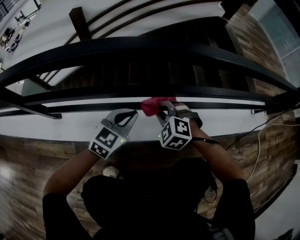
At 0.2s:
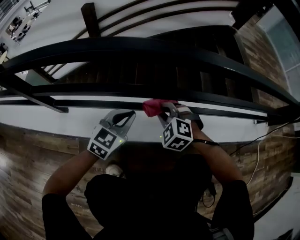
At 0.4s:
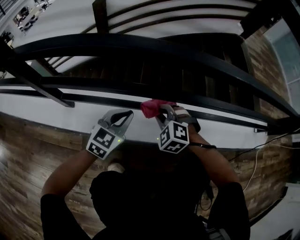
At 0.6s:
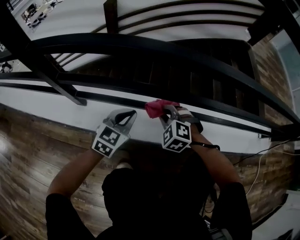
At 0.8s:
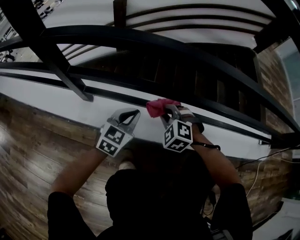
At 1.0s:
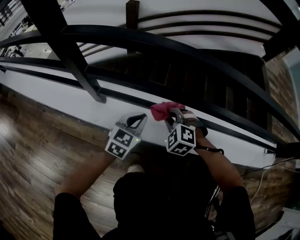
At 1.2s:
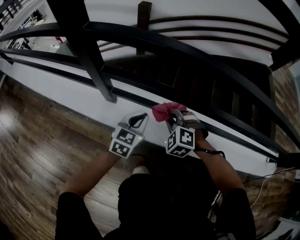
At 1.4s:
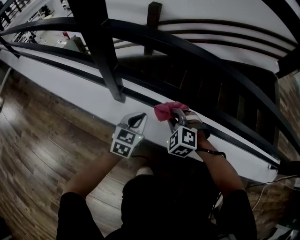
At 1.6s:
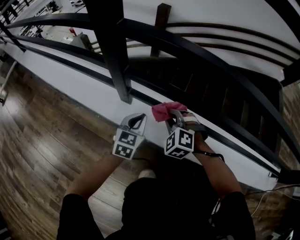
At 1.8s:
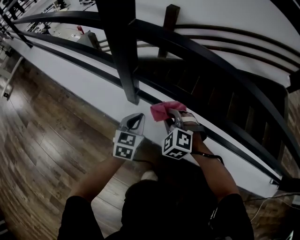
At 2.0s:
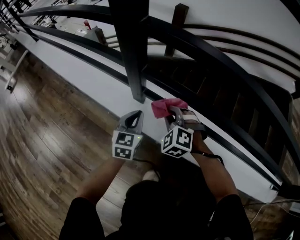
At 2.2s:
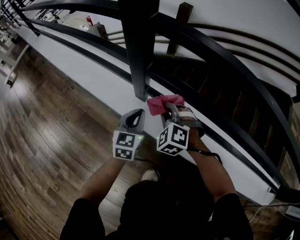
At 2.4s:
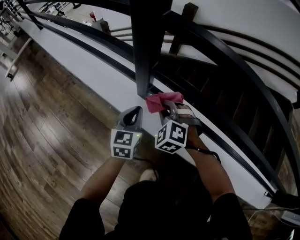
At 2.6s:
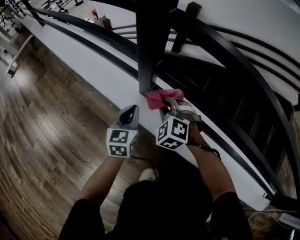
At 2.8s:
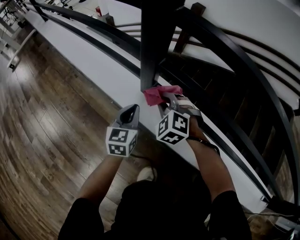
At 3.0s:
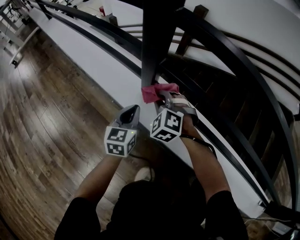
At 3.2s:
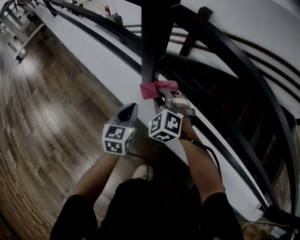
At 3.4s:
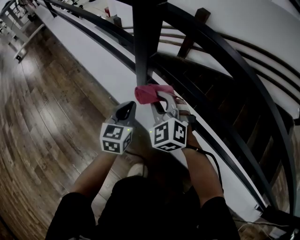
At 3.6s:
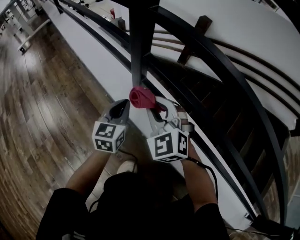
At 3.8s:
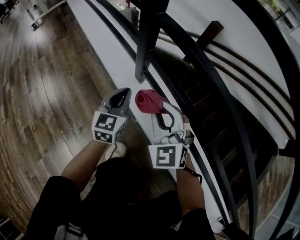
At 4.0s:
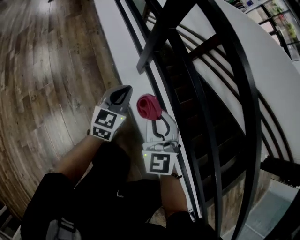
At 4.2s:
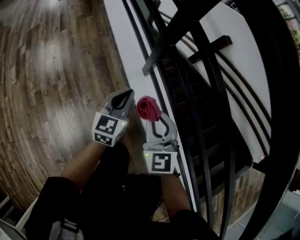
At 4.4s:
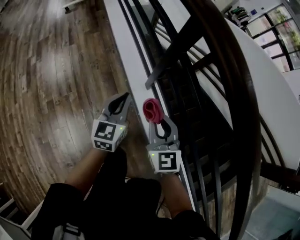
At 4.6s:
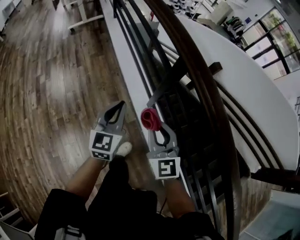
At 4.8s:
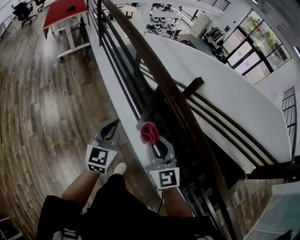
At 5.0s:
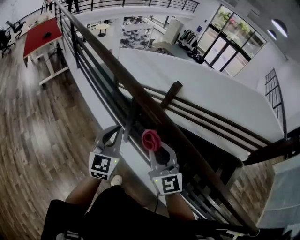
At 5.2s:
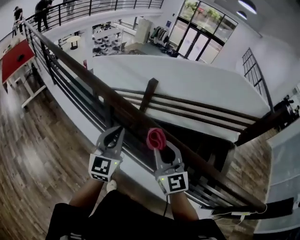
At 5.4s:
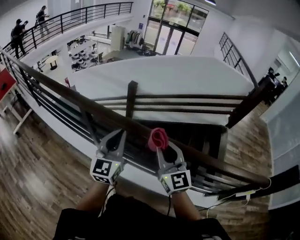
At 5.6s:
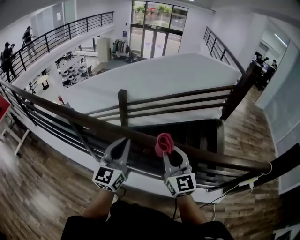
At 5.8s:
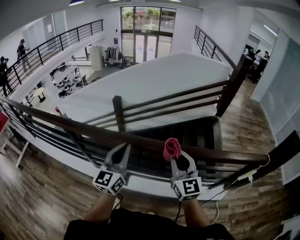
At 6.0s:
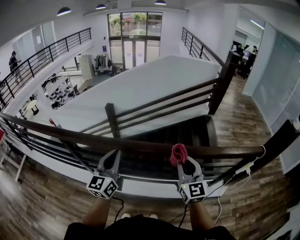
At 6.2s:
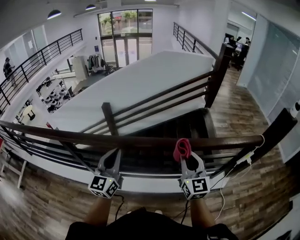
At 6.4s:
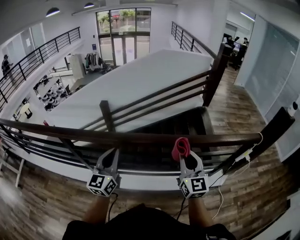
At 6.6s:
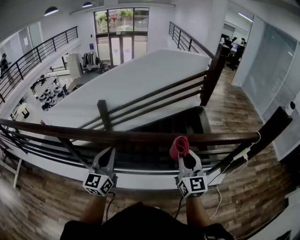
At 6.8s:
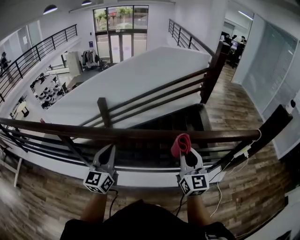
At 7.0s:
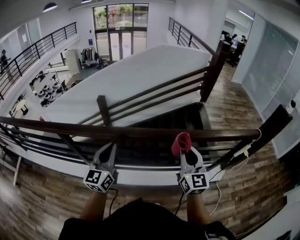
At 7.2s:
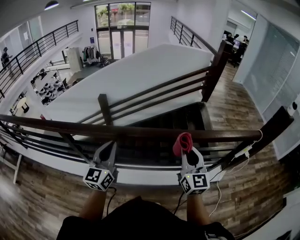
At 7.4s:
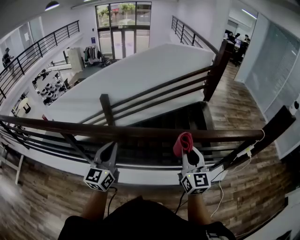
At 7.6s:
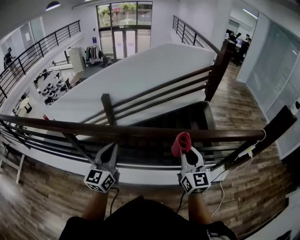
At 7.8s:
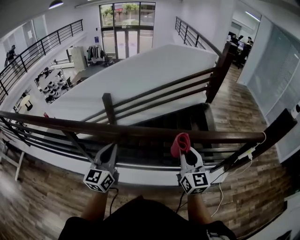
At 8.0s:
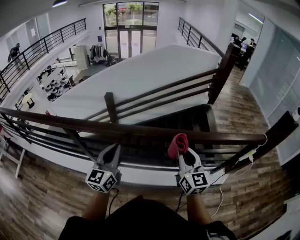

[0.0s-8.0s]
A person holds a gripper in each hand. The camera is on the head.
0.0s to 1.6s: The left gripper moves roughly 30 cm, and swivels some 40 degrees. The right gripper ends up about 30 cm from where it was, and changes its angle by roughly 20 degrees.
1.6s to 3.2s: The right gripper heads to the left and forward, covering about 15 cm. Meanwhile the left gripper is displaced to the left by approximately 10 cm, and turns by roughly 30 degrees.
3.2s to 4.8s: Both grippers move upward, about 60 cm. The right gripper tilts its fingers about 30 degrees upward; the left gripper turns by about 20 degrees.
4.8s to 6.4s: The right gripper moves about 40 cm, and rotates roughly 70 degrees. The left gripper ends up approximately 30 cm from where it was, and turns by about 60 degrees.
6.4s to 8.0s: There are only small adjustments of the grippers.

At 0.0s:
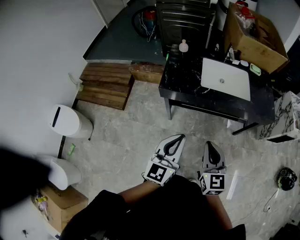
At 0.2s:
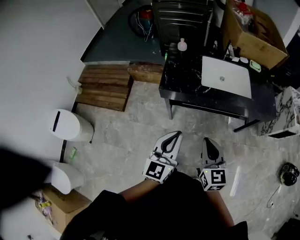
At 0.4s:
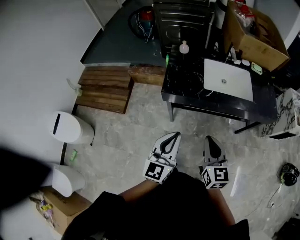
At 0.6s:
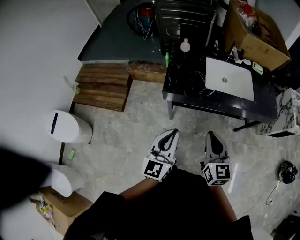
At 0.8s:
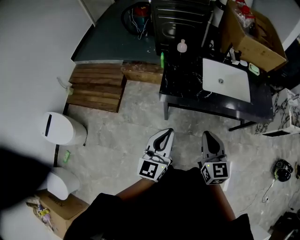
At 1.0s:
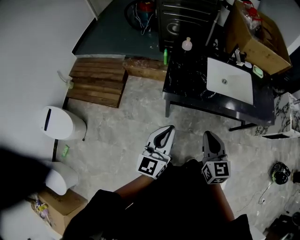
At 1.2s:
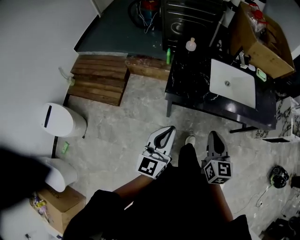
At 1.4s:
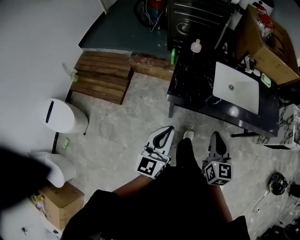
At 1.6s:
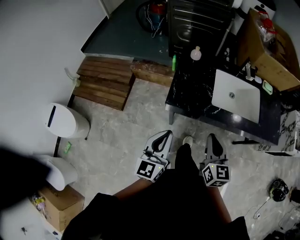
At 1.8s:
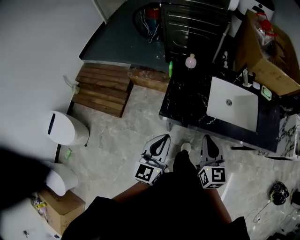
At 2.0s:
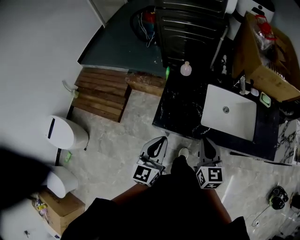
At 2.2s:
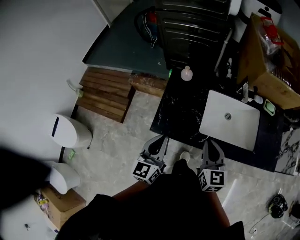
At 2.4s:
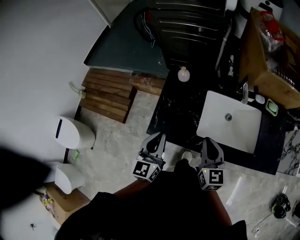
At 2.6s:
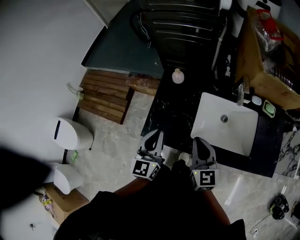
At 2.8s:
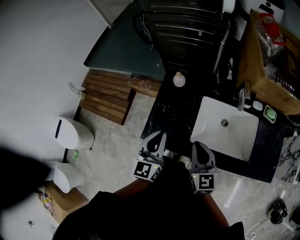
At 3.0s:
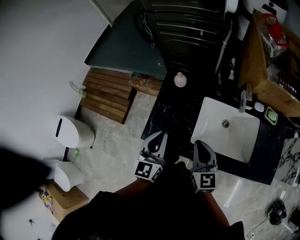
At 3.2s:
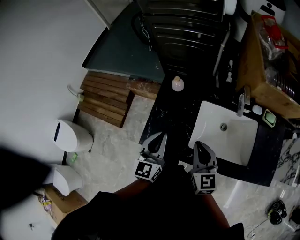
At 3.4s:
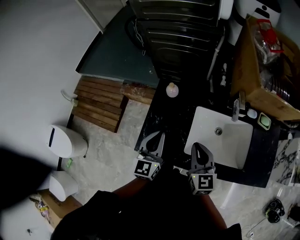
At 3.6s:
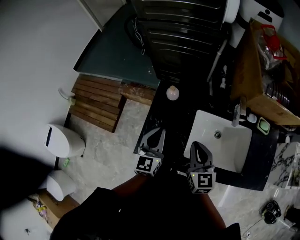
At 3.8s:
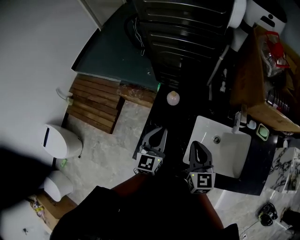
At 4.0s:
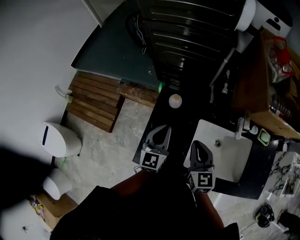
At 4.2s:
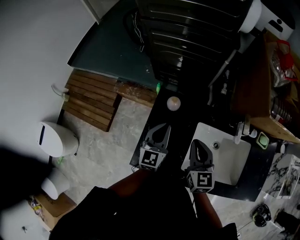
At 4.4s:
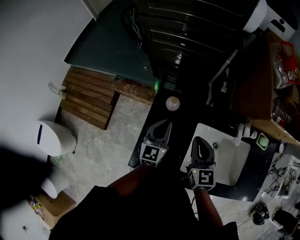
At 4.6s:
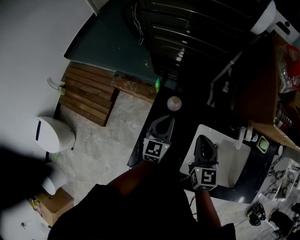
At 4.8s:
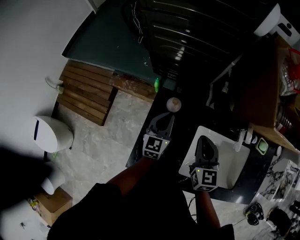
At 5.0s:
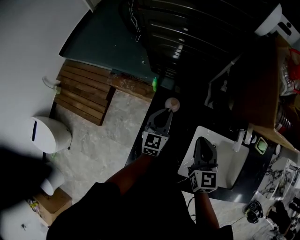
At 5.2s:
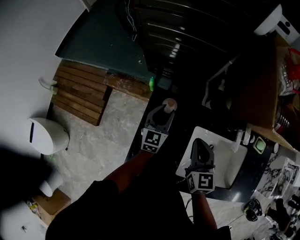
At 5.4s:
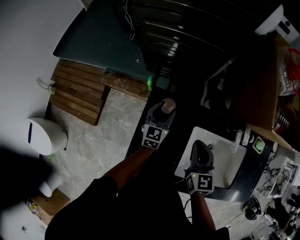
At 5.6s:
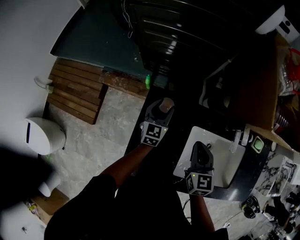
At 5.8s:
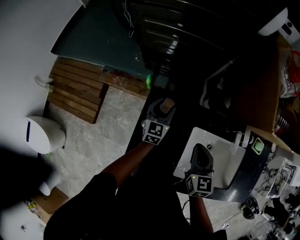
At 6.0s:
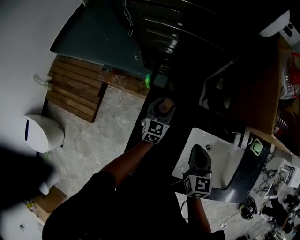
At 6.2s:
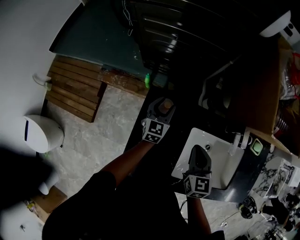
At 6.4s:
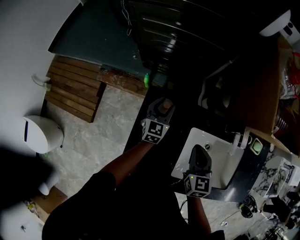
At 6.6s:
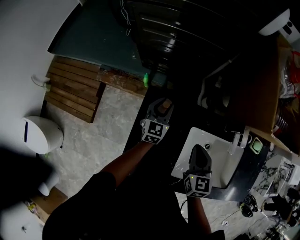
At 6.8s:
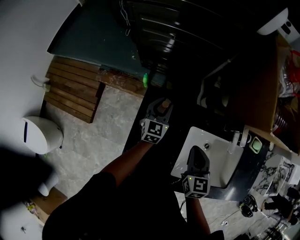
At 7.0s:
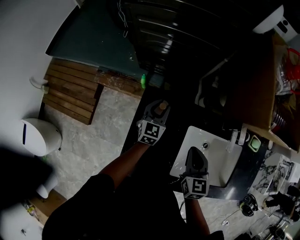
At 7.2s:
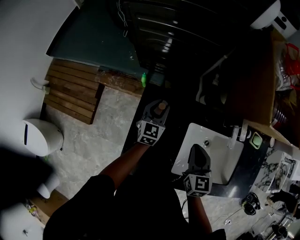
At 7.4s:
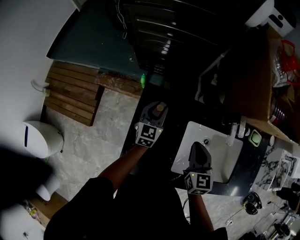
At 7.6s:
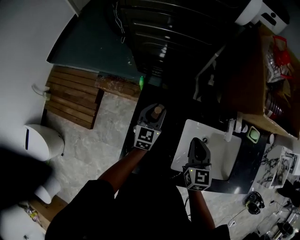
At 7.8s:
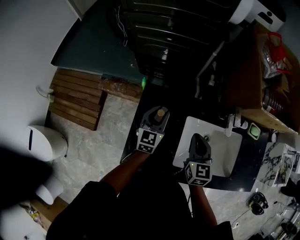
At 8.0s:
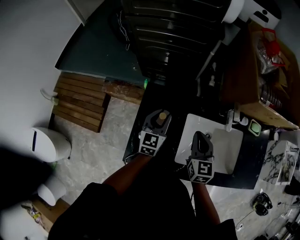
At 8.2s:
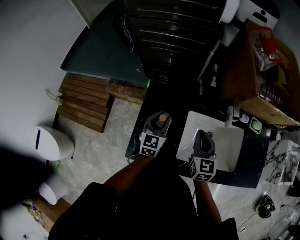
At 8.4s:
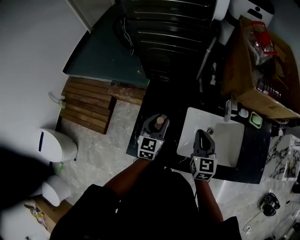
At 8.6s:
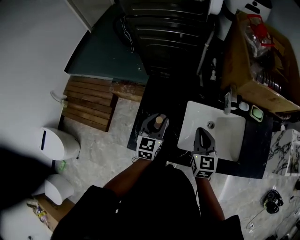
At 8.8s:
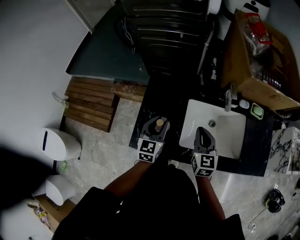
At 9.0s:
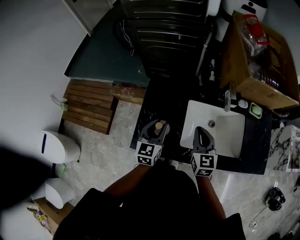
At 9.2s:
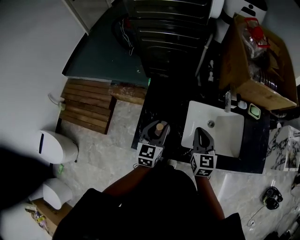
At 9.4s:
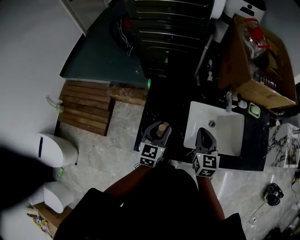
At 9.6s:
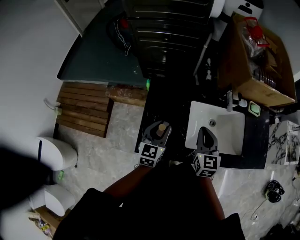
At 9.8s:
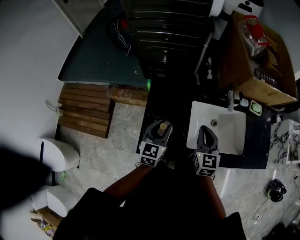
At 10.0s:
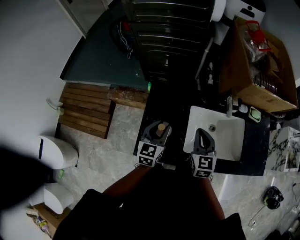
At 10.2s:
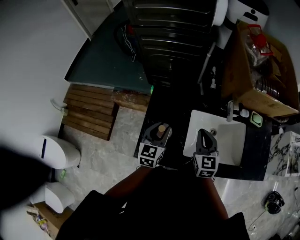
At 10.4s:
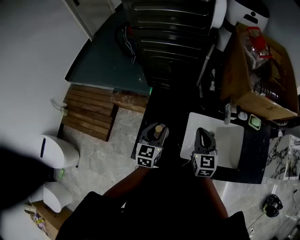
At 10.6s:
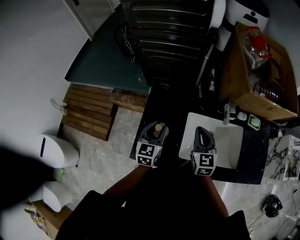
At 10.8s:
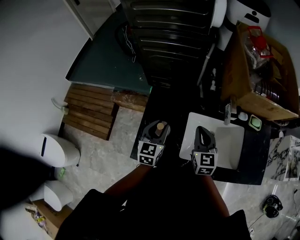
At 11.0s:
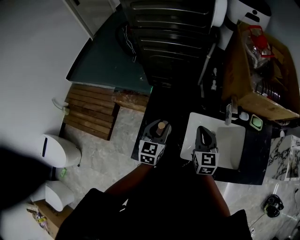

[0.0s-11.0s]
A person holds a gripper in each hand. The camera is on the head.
0.0s to 1.6s: The left gripper goes roughly 20 cm forward and to the left. Meanwhile the right gripper is displaced forward by about 20 cm.
1.6s to 3.2s: The grippers both shift forward and to the right by roughly 30 cm.
3.2s to 4.8s: The left gripper goes some 25 cm forward and downward. The right gripper heads forward, covering roughly 20 cm.
4.8s to 6.2s: The left gripper travels forward and downward by some 10 cm, and opens its fingers.
6.2s to 7.8s: The left gripper is displaced backward and upward by roughly 15 cm.
7.8s to 9.4s: The left gripper heads backward, covering some 20 cm; the right gripper moves backward, roughly 10 cm.
9.4s to 11.0s: The two grippers go approximately 5 cm forward.

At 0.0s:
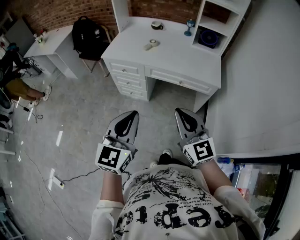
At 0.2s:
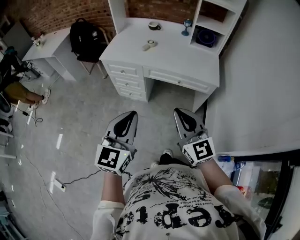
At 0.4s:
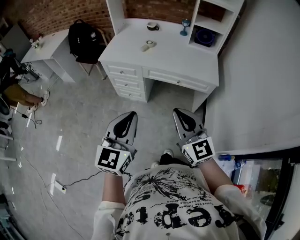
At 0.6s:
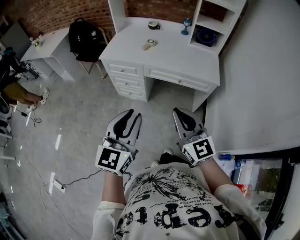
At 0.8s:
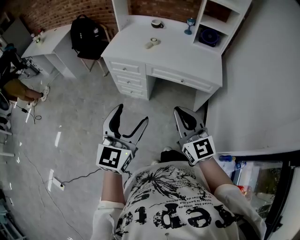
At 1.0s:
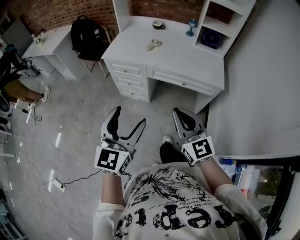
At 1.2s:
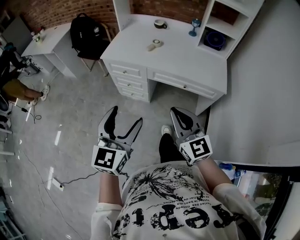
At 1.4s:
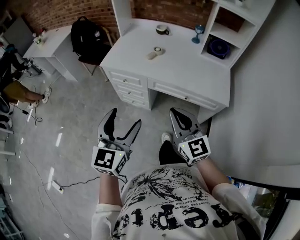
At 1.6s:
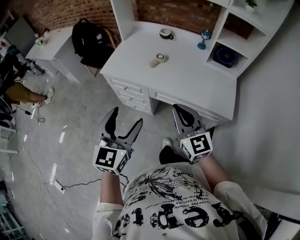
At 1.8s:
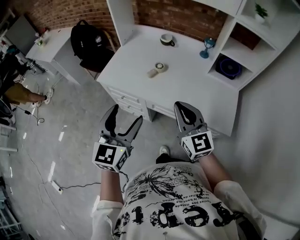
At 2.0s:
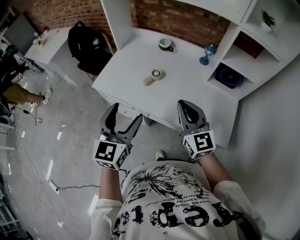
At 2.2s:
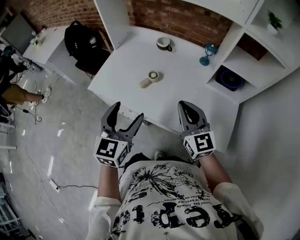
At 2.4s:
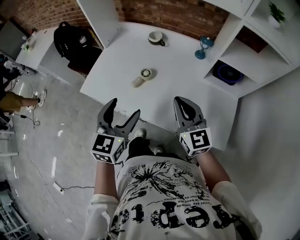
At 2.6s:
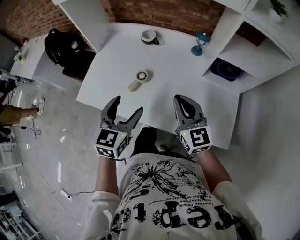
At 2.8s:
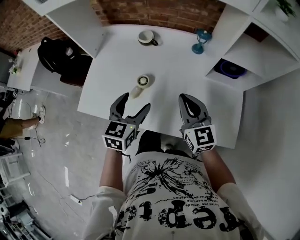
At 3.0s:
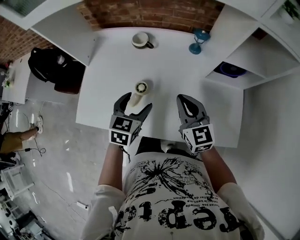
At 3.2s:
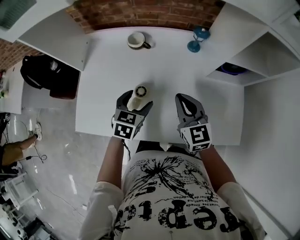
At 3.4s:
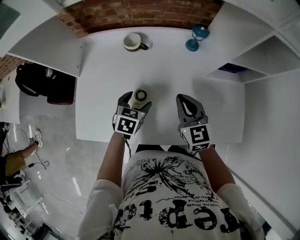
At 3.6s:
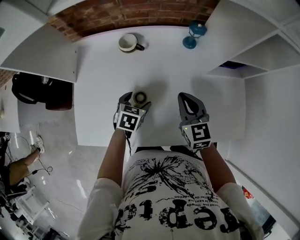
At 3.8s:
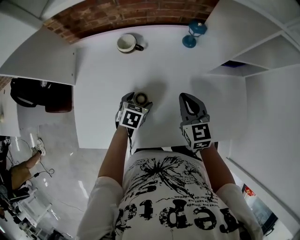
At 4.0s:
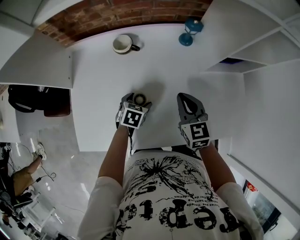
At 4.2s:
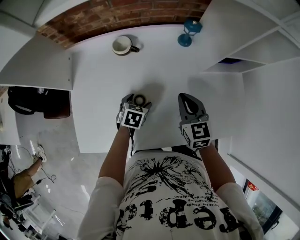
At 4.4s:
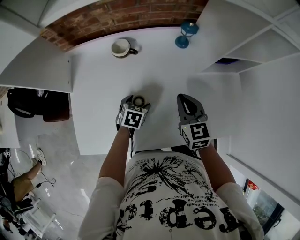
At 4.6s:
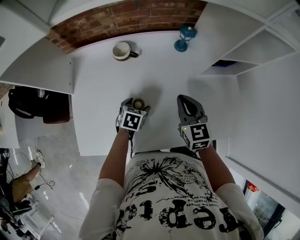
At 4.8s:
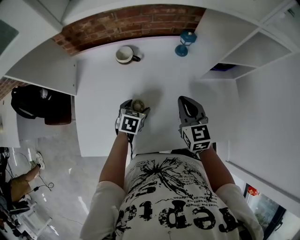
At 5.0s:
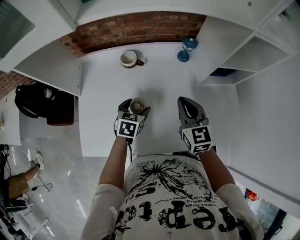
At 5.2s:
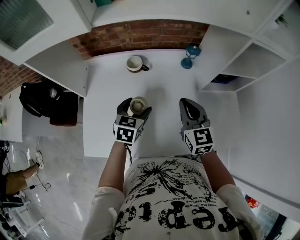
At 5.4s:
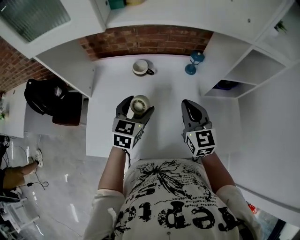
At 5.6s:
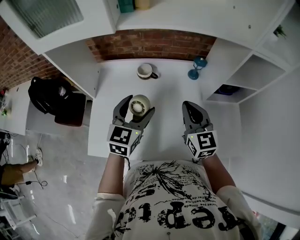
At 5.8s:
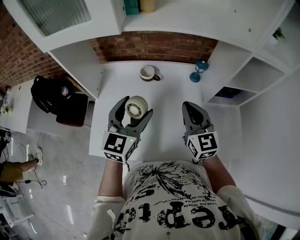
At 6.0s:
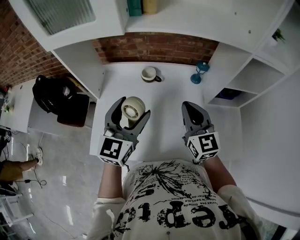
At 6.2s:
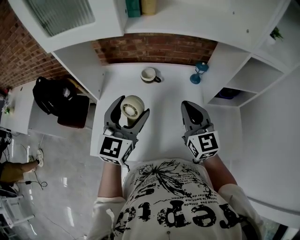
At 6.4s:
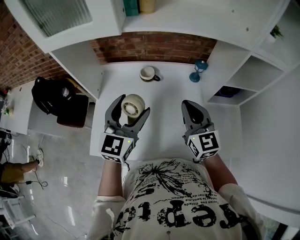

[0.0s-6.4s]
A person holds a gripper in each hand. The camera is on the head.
0.0s to 1.6s: The two grippers go approximately 30 cm forward. The left gripper opens.
1.6s to 3.2s: The two grippers travel together, forward, about 50 cm. The left gripper angles its fingers downward, by roughly 30 degrees, while the right gripper turns by some 30 degrees.
3.2s to 4.8s: The left gripper is displaced downward by about 10 cm.
4.8s to 6.4s: The right gripper travels upward and to the left by about 15 cm, and changes its angle by some 20 degrees, while the left gripper heads upward, covering approximately 30 cm, and tips its fingers upward by some 50 degrees.
